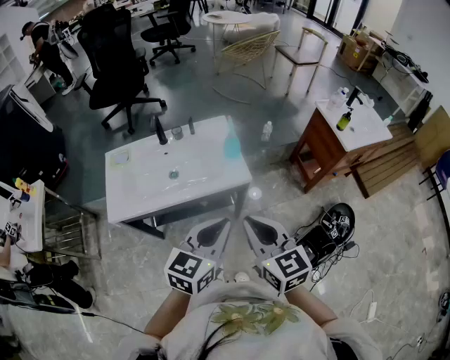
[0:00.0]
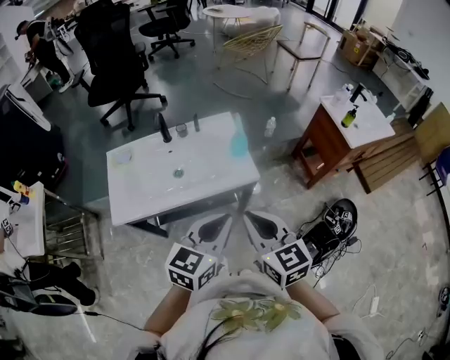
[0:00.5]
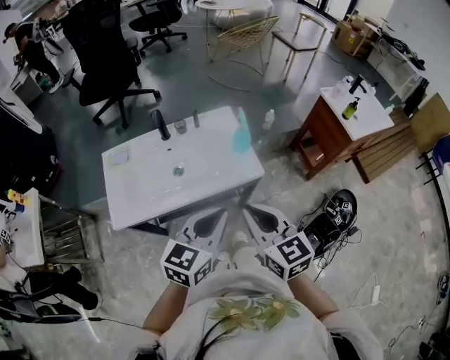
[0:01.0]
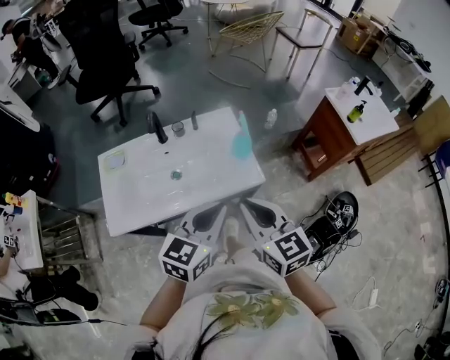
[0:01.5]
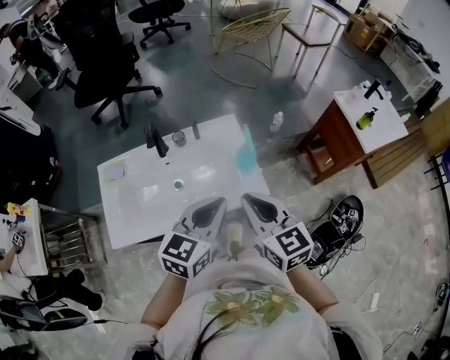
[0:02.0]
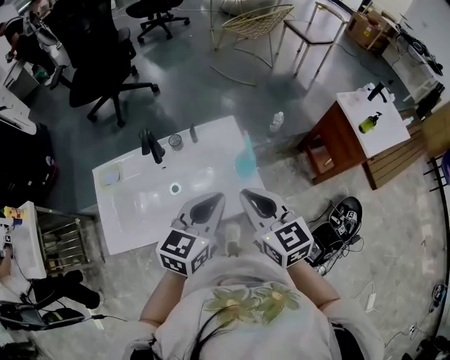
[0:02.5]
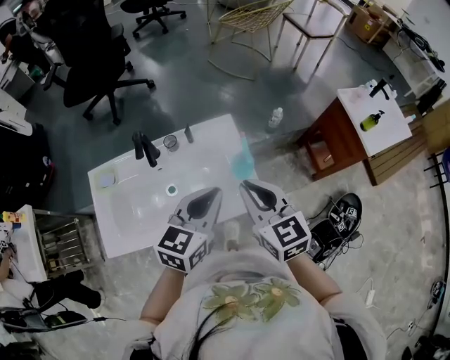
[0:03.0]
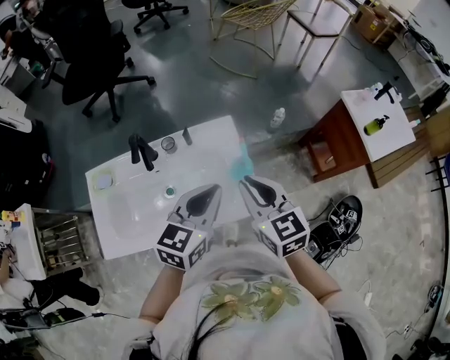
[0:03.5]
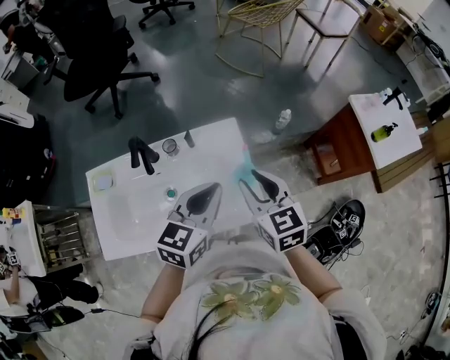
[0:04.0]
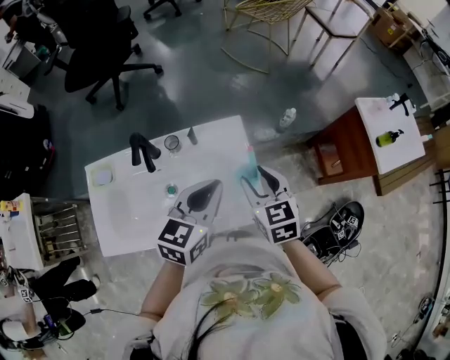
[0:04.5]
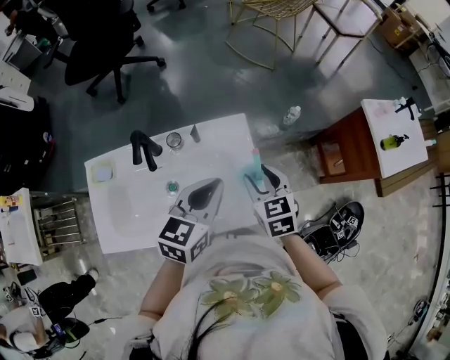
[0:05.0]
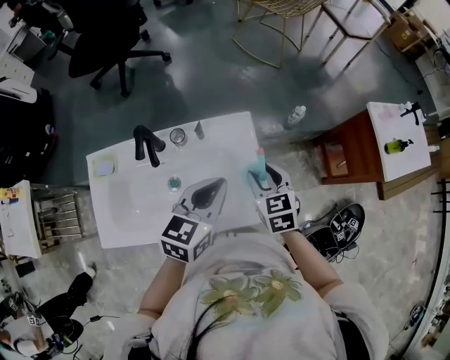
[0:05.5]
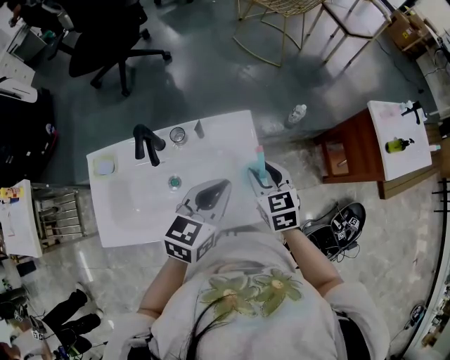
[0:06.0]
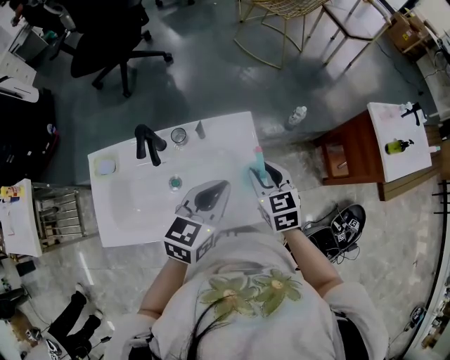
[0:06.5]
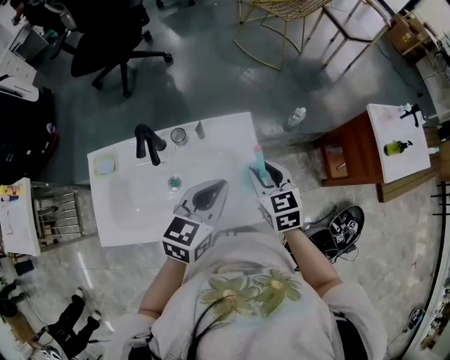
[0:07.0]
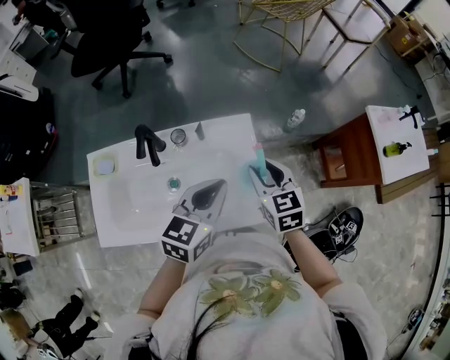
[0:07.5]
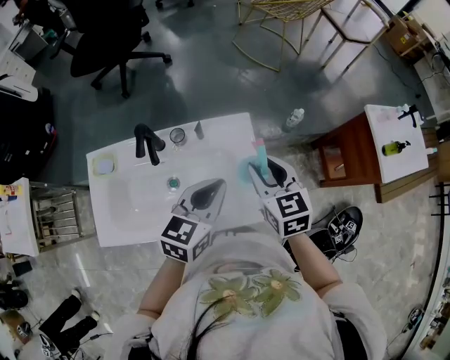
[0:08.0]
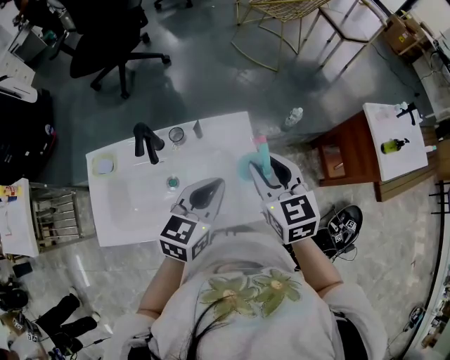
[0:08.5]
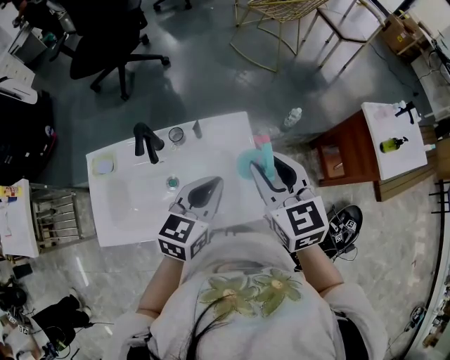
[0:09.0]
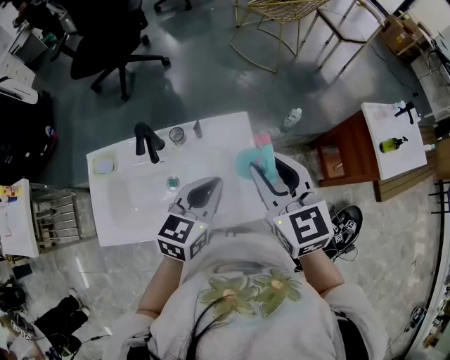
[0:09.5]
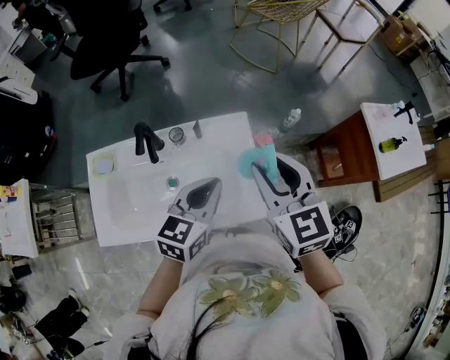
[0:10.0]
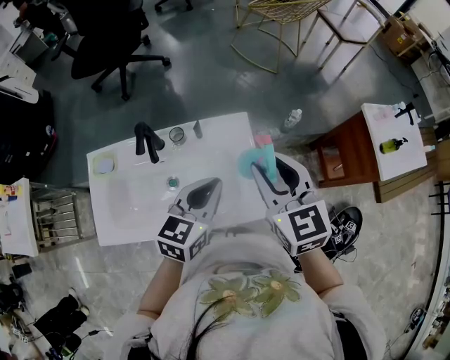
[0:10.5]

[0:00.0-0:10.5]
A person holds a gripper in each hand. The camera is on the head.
0:00.0 to 0:02.0: Both grippers travel together forward, roughly 20 cm.
0:02.0 to 0:04.0: Both grippers travel together forward, about 15 cm. The right gripper opens.
0:04.0 to 0:06.5: The right gripper goes roughly 10 cm downward.
0:06.5 to 0:08.5: The right gripper travels upward by some 10 cm.
0:08.5 to 0:10.5: The right gripper is displaced upward by about 5 cm.

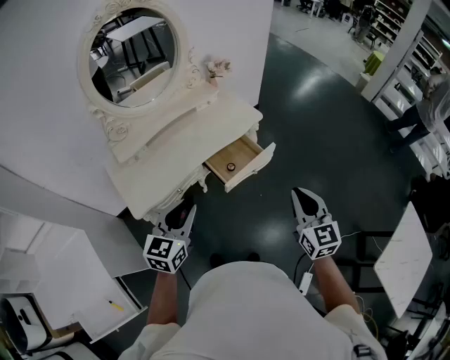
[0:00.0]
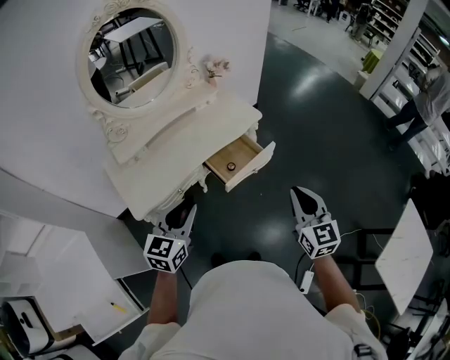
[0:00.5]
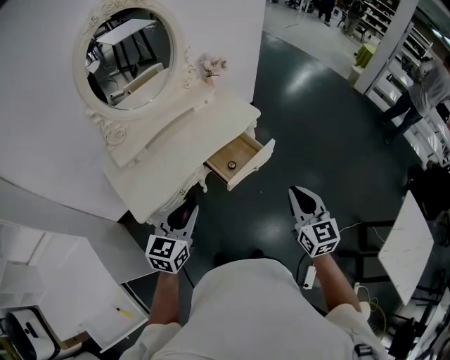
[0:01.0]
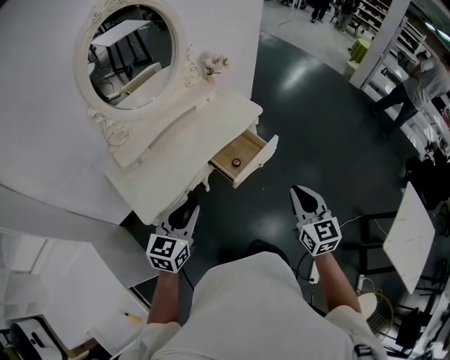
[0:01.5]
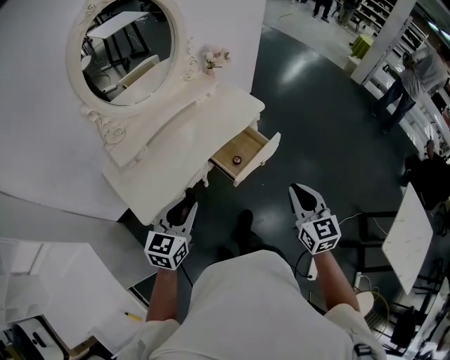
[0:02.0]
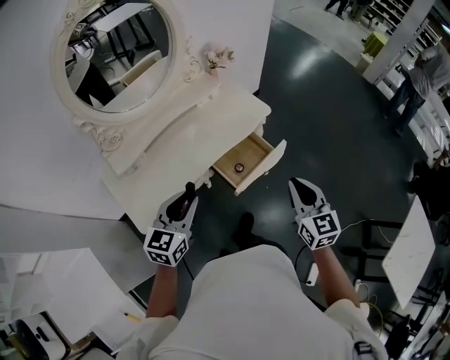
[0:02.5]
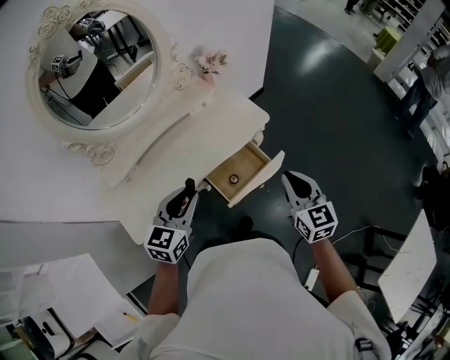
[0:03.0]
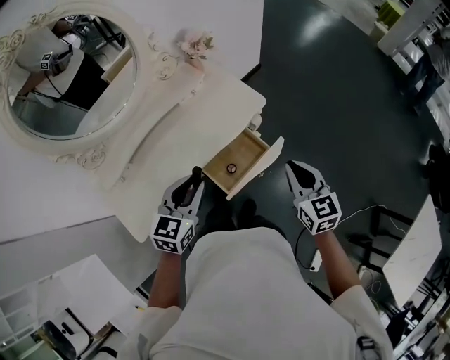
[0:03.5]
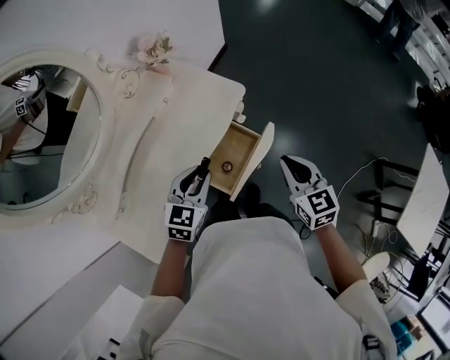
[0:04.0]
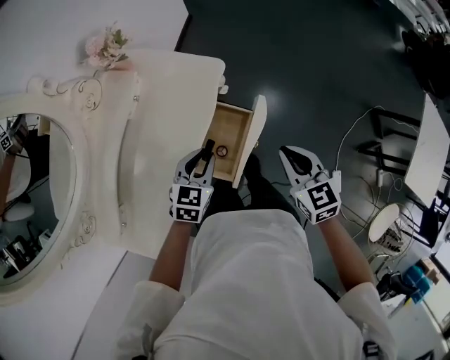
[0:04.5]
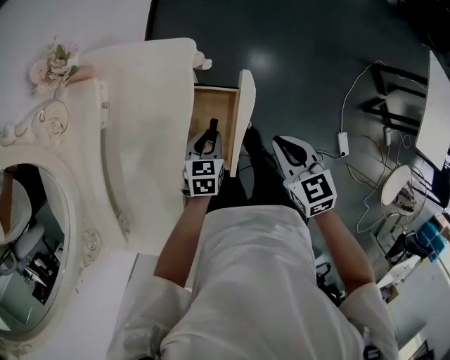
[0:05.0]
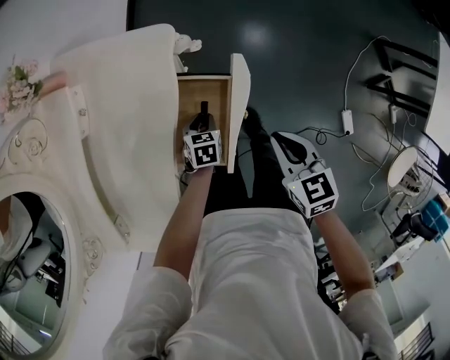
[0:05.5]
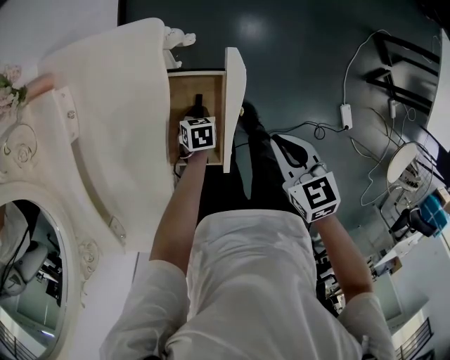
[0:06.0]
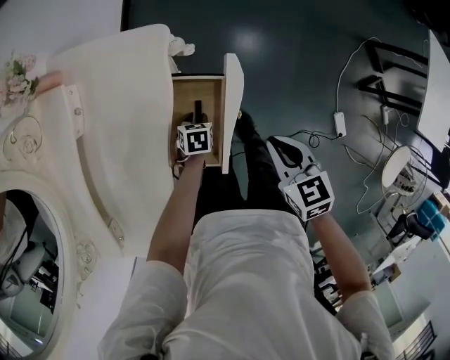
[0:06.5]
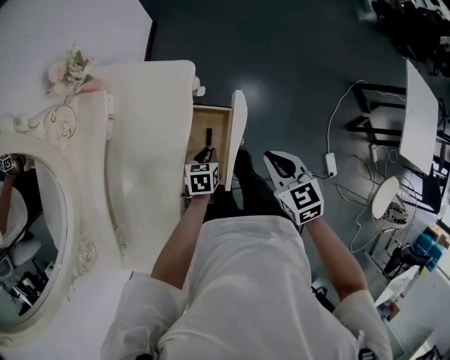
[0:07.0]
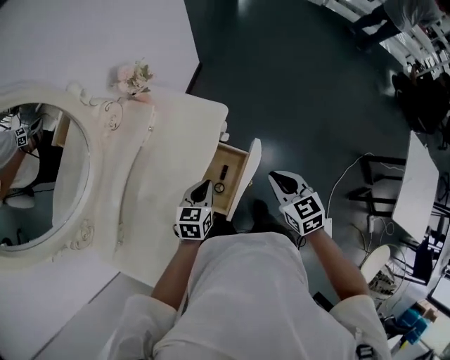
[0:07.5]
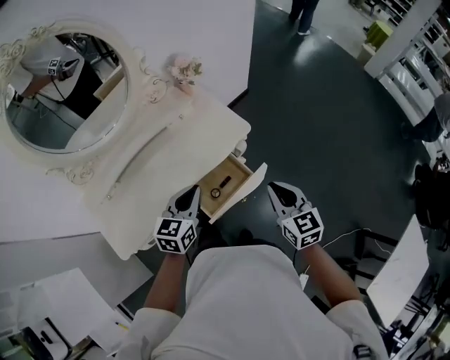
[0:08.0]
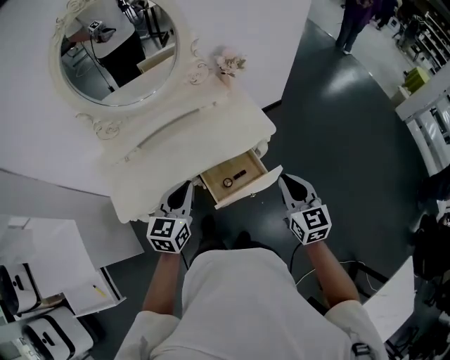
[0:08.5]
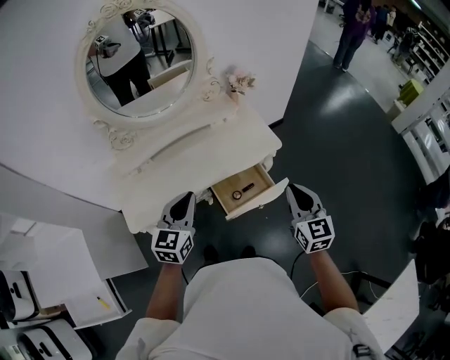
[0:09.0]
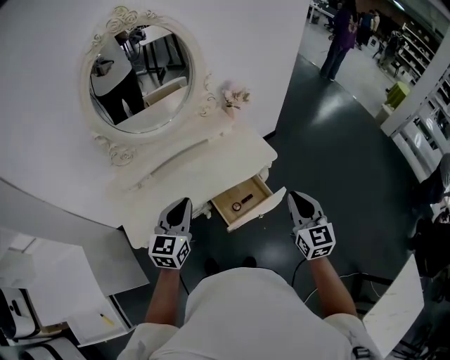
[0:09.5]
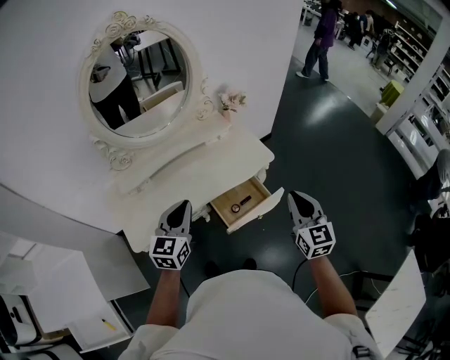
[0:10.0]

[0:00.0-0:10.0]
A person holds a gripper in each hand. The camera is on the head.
0:00.0 to 0:02.0: Both grippers move to the left, some 5 cm.
0:02.0 to 0:04.0: The right gripper moves forward and downward, about 30 cm. Meanwhile the left gripper moves forward, approximately 30 cm, and swivels roughly 30 degrees.
0:04.0 to 0:06.0: The left gripper heads downward, covering approximately 40 cm, and tilts its fingers about 40 degrees downward. The right gripper is displaced downward by approximately 20 cm, and swivels roughly 30 degrees.
0:06.0 to 0:08.0: The left gripper is displaced upward by about 40 cm, and tilts its fingers some 50 degrees upward, while the right gripper heads upward, covering approximately 20 cm, and swivels roughly 50 degrees.
0:08.0 to 0:10.0: The left gripper is displaced to the left, upward and backward by roughly 20 cm, and turns by approximately 20 degrees; the right gripper travels upward by approximately 10 cm.

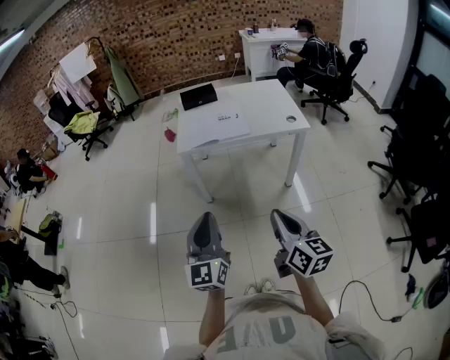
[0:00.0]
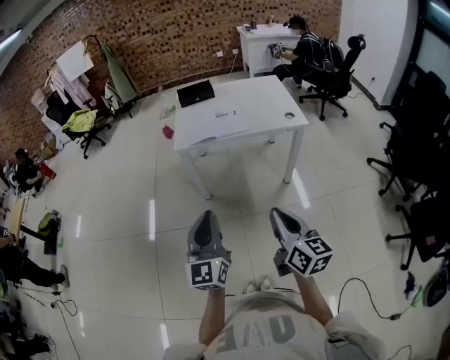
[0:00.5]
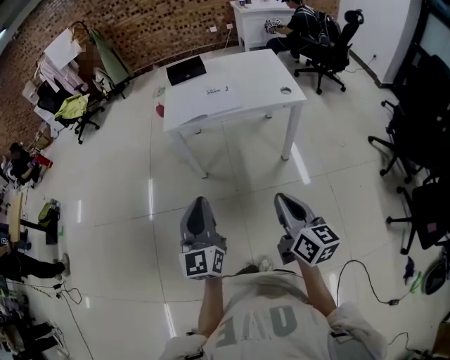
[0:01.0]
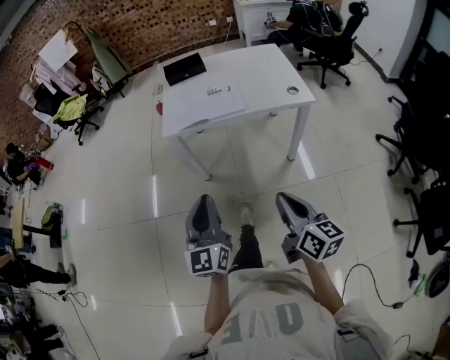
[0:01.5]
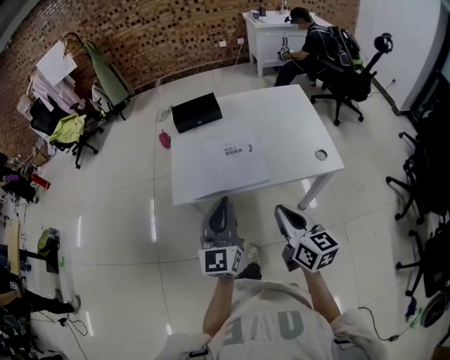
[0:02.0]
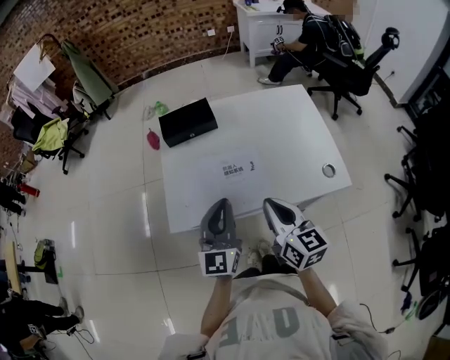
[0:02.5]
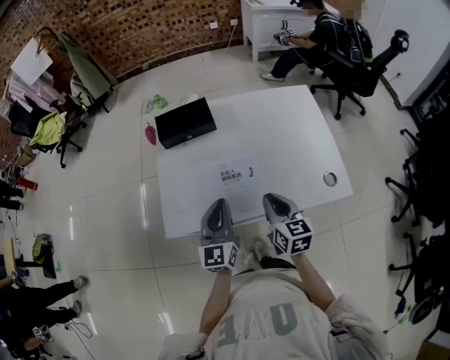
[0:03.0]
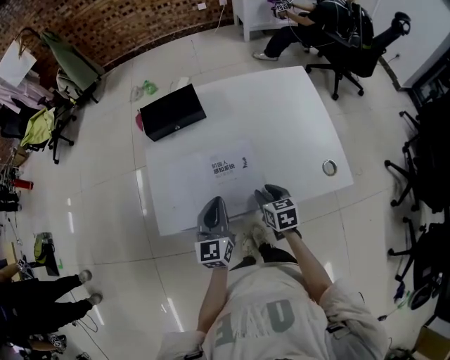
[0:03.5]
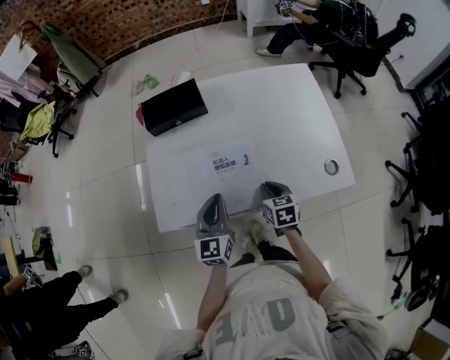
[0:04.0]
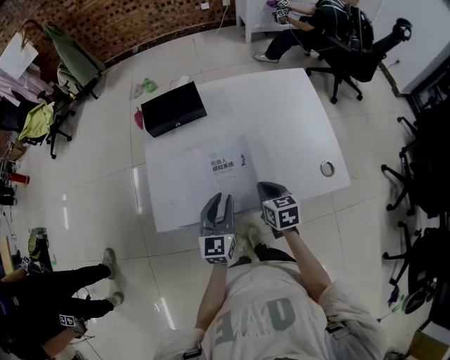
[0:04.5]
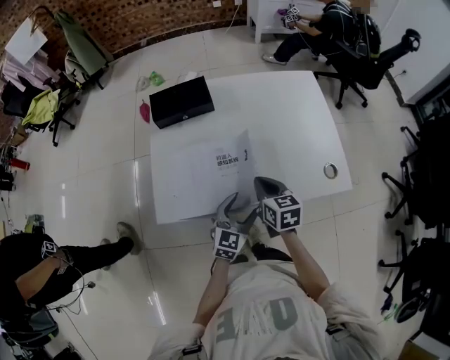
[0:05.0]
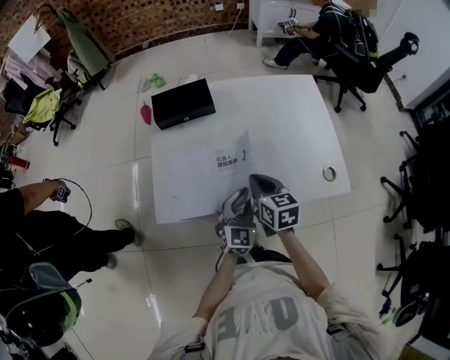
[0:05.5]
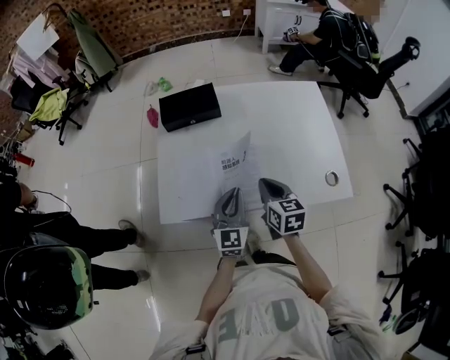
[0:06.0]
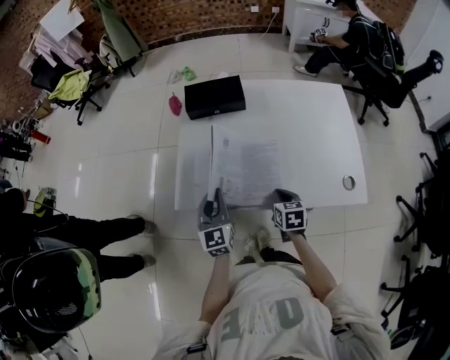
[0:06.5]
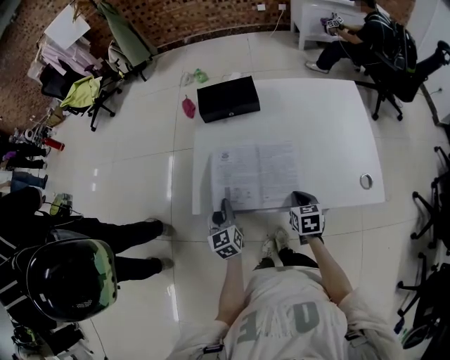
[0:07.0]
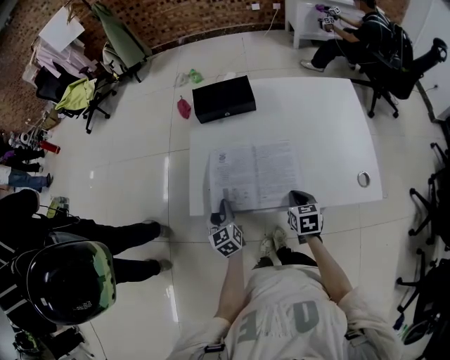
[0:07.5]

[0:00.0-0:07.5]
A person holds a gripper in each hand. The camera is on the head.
0:00.0 to 0:02.0: Both grippers are carried forward, approximately 40 cm.
0:02.0 to 0:04.0: Both grippers travel together forward and downward, roughly 30 cm. The left gripper rotates about 20 degrees. The right gripper angles its fingers downward, by roughly 40 degrees, and opens, then closes once more.
0:04.0 to 0:05.5: The left gripper travels to the right by roughly 10 cm, swivels some 20 degrees, and opens, then closes again; the right gripper moves upward and to the left, approximately 15 cm.
0:05.5 to 0:07.5: The left gripper shifts about 25 cm to the left, and rotates some 50 degrees, while the right gripper travels downward by some 10 cm.
